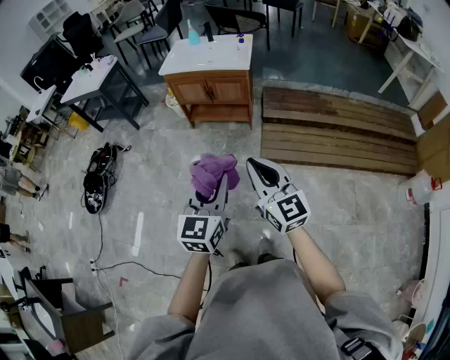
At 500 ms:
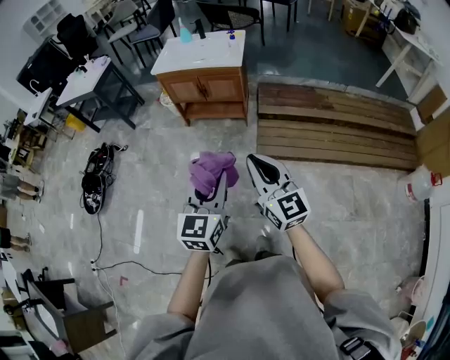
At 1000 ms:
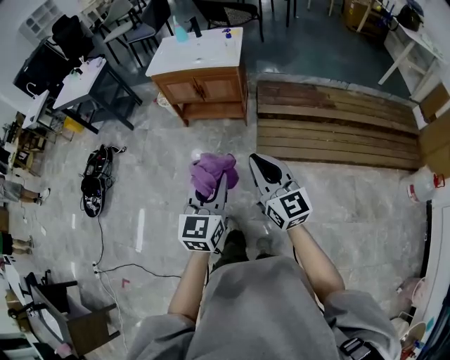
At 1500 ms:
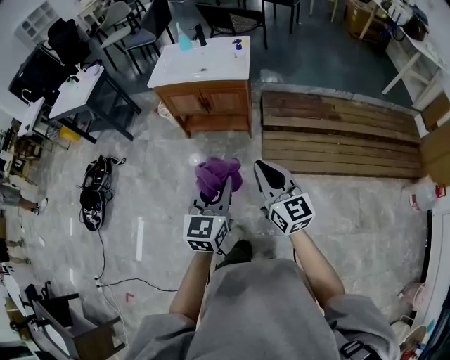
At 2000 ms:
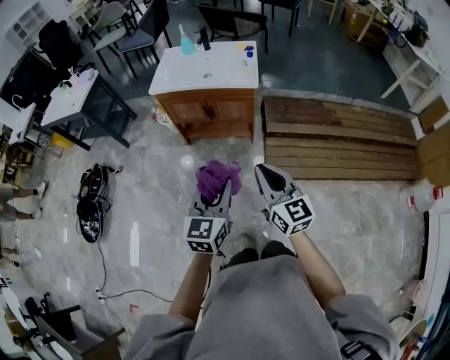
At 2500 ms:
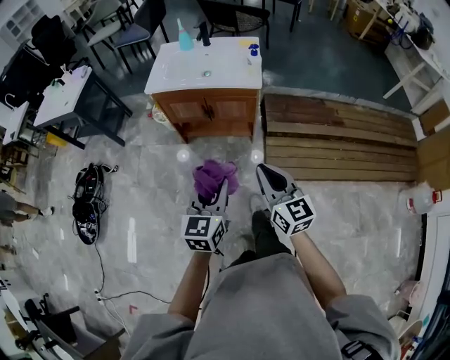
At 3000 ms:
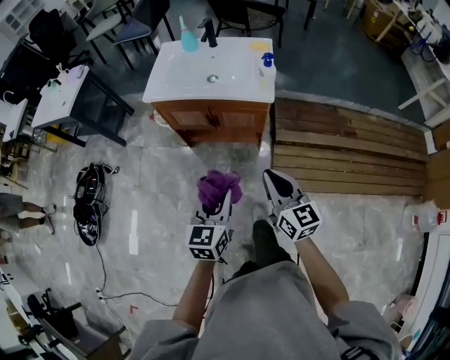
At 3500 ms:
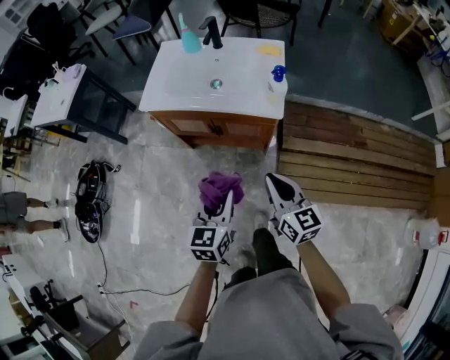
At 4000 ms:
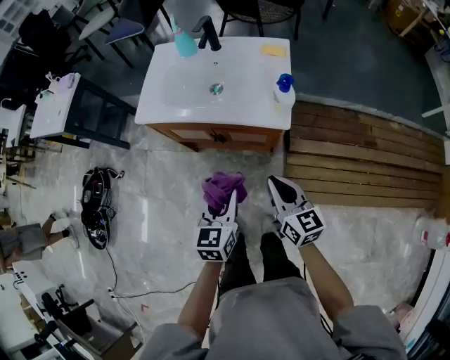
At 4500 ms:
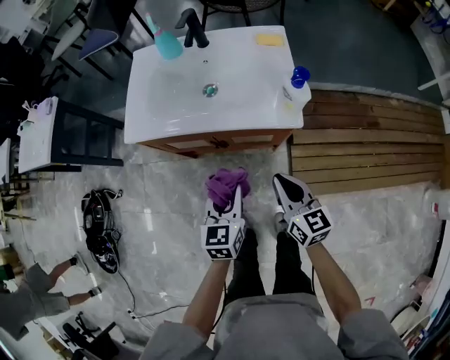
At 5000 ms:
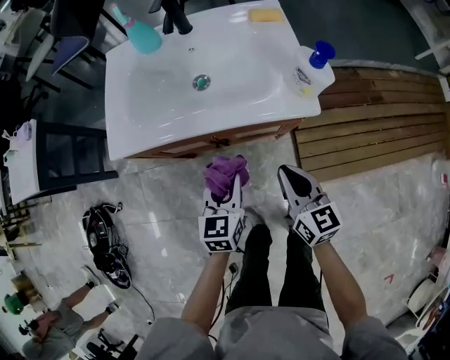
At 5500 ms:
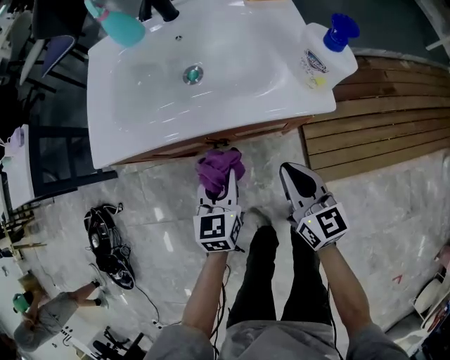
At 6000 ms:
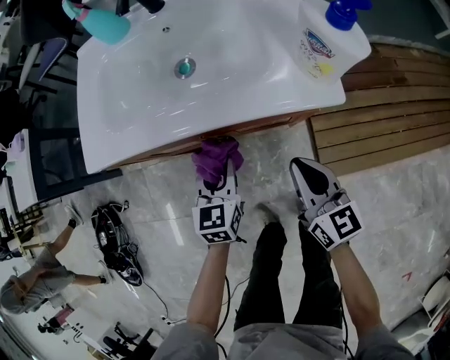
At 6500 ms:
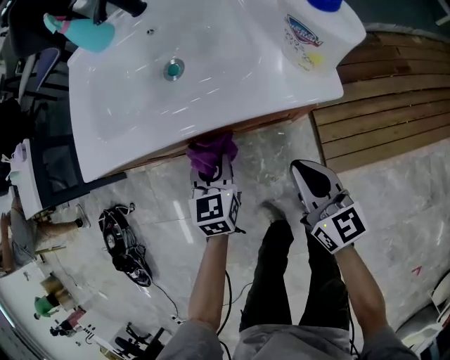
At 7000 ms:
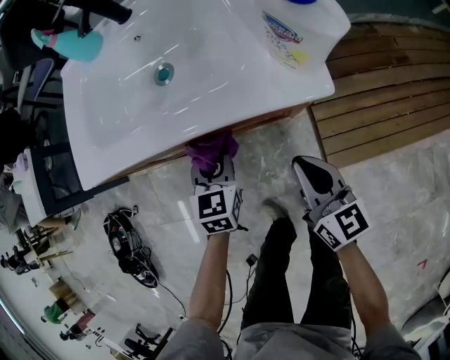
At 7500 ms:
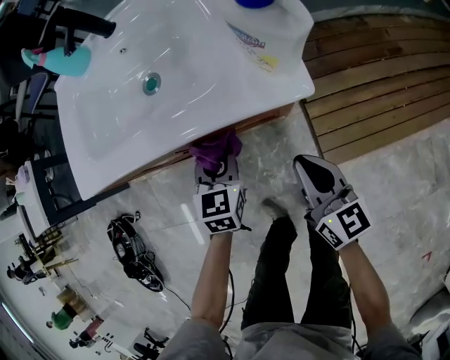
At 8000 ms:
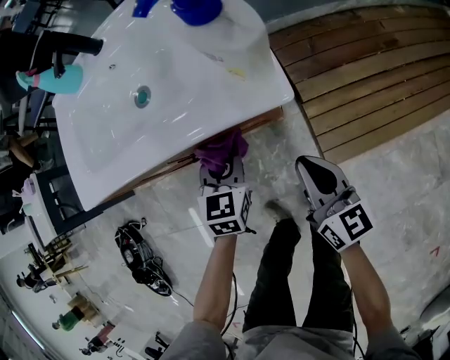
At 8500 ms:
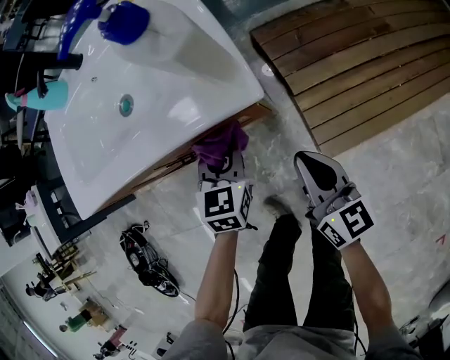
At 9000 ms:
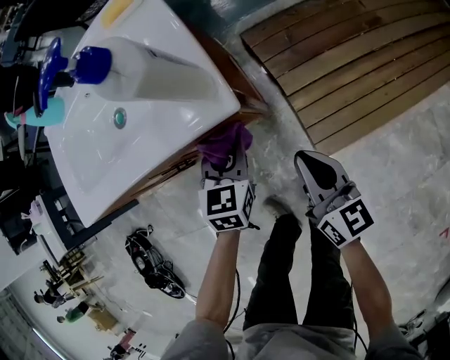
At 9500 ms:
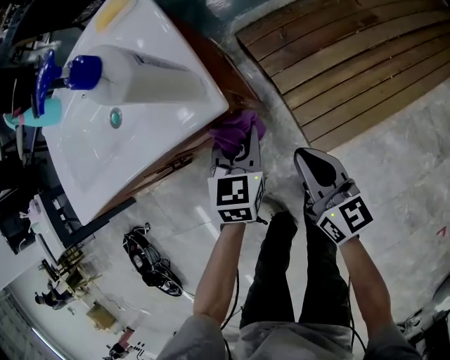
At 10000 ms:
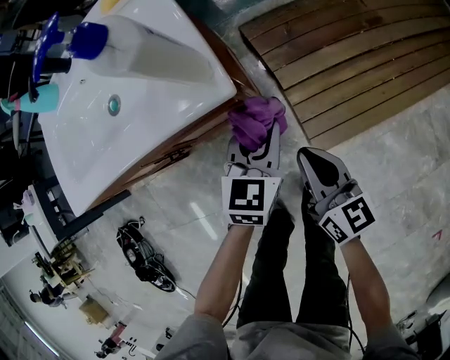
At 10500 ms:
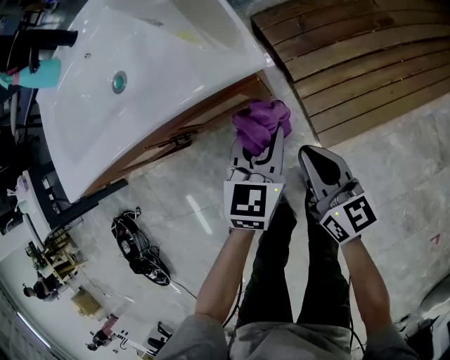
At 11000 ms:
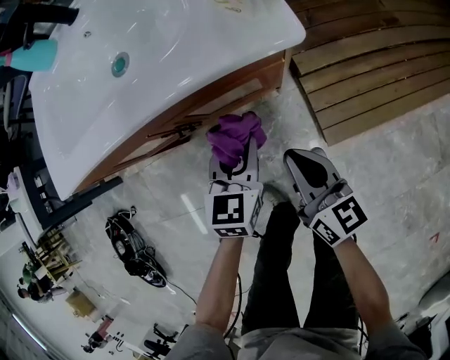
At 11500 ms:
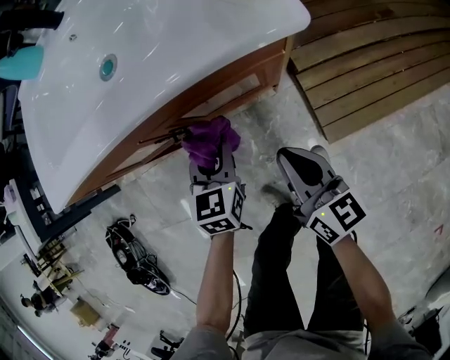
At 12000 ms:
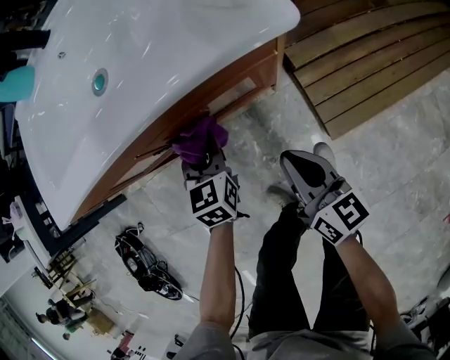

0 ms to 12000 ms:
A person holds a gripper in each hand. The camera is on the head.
0 ms to 2000 ms: Both grippers move forward, about 25 cm.
2000 ms to 4000 ms: Both grippers travel together forward and downward, about 35 cm.
4000 ms to 6000 ms: The grippers both shift downward and forward by some 25 cm.
6000 ms to 8000 ms: The two grippers go some 10 cm to the right.
8000 ms to 10000 ms: The right gripper is displaced to the right by roughly 5 cm, while the left gripper moves to the right, approximately 20 cm.
10000 ms to 12000 ms: The right gripper moves to the left and downward, some 15 cm; the left gripper travels to the left and downward by some 25 cm, and changes its angle by some 30 degrees.

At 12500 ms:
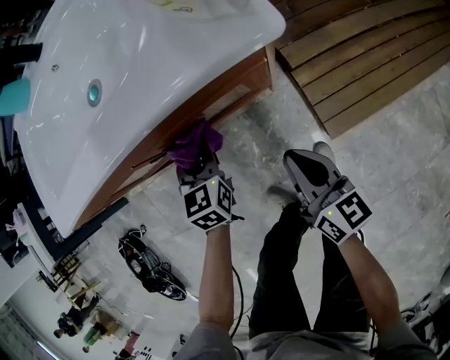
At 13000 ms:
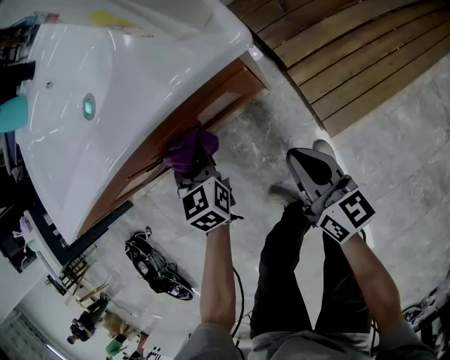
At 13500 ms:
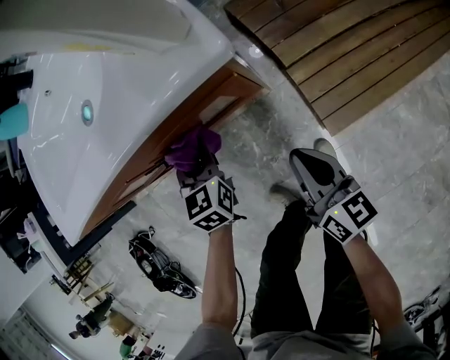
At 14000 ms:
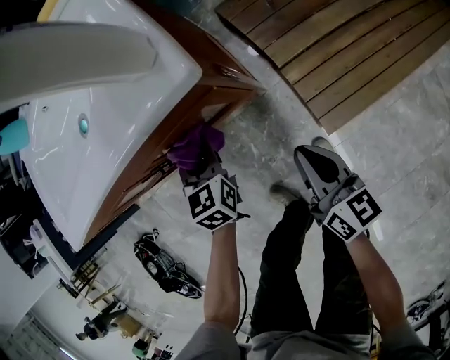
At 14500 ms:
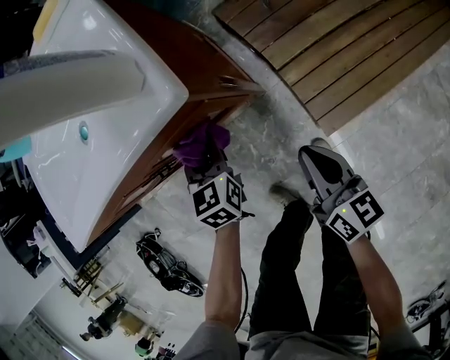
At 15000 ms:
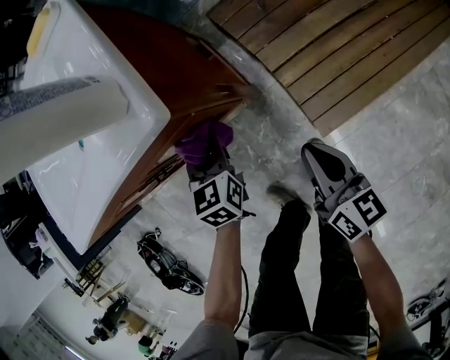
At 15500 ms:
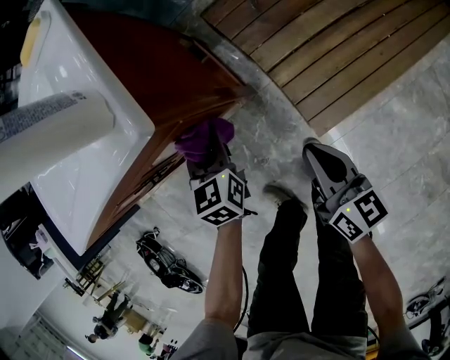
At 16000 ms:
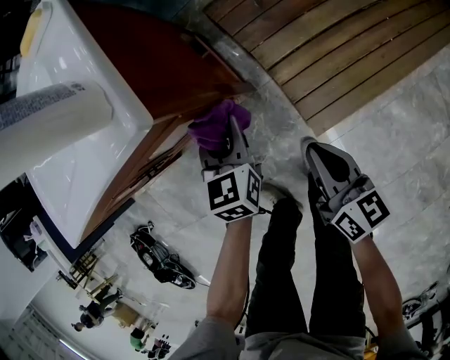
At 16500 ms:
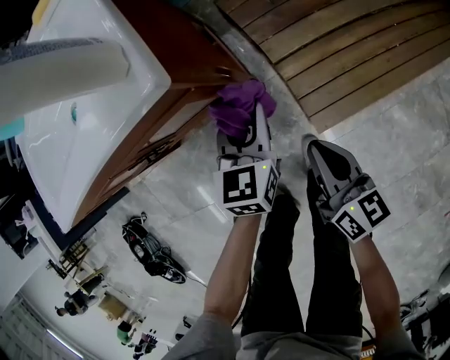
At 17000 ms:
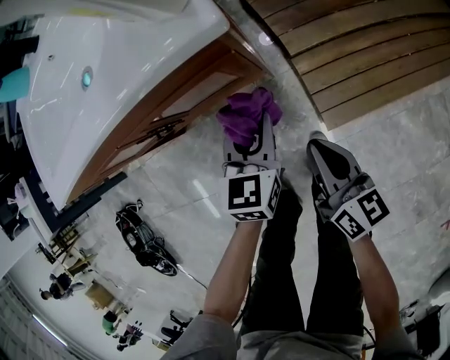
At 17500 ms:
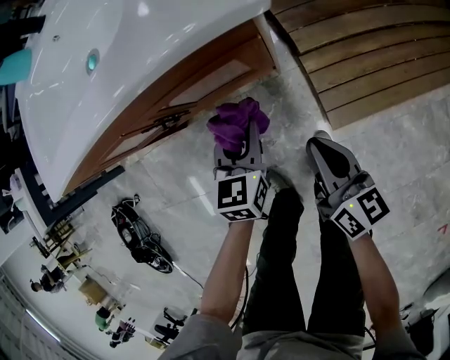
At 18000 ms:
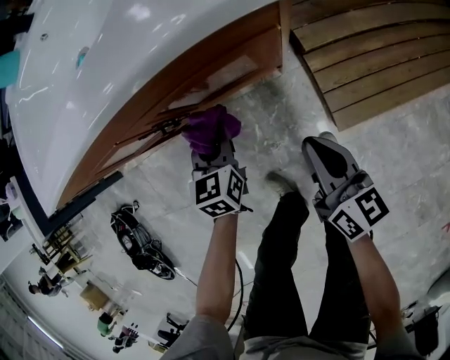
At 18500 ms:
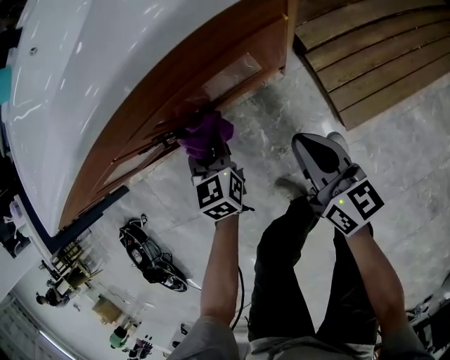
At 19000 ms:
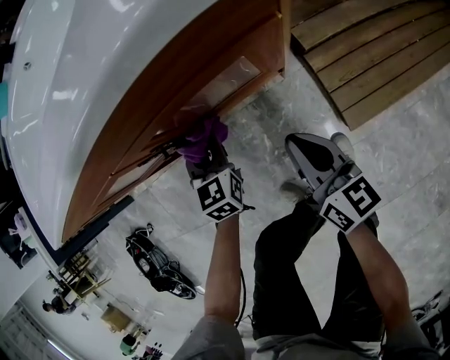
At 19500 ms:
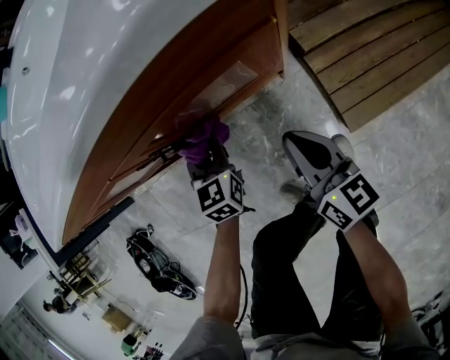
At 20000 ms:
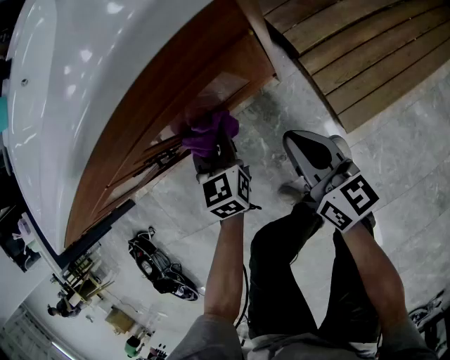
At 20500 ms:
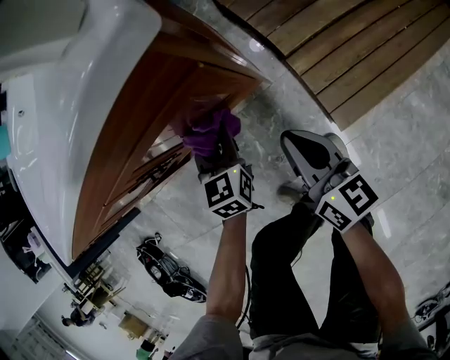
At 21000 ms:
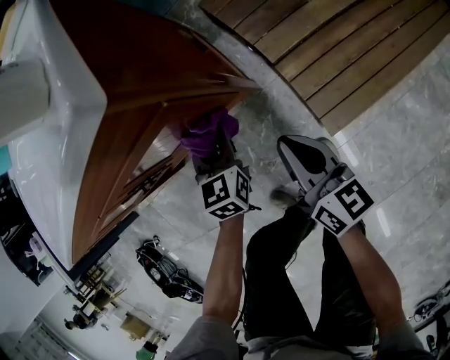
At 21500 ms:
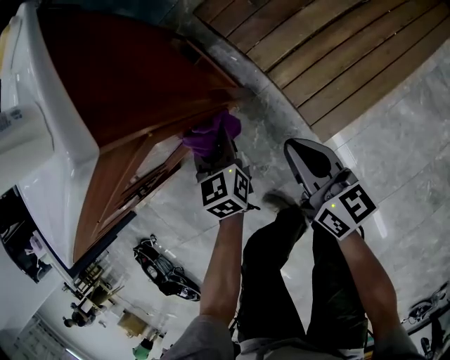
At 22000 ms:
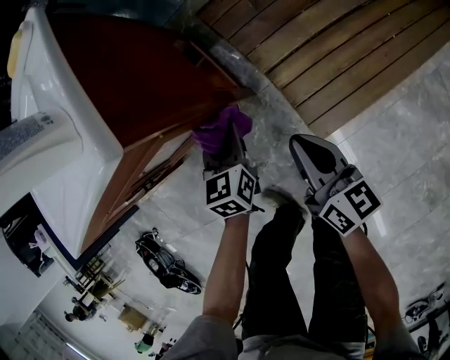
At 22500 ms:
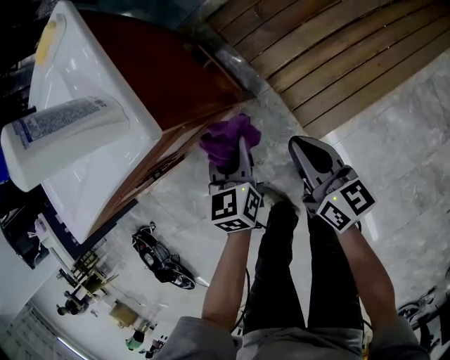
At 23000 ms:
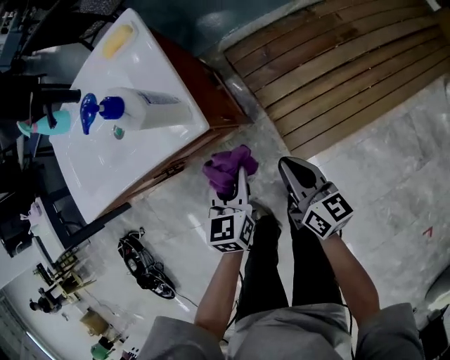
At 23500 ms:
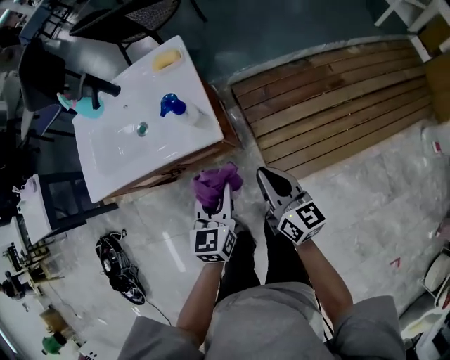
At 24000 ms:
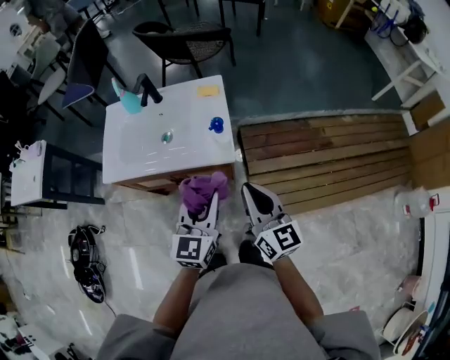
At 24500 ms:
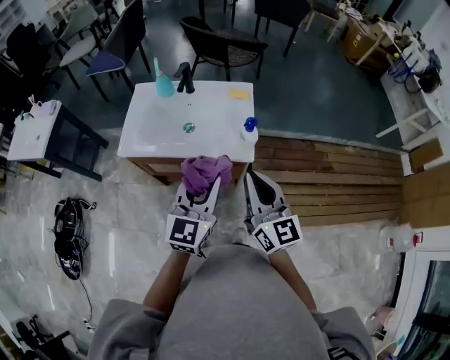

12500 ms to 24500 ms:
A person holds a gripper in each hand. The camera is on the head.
12500 ms to 14500 ms: The grippers both shift to the right by about 10 cm.
14500 ms to 16500 ms: The left gripper travels to the right by about 15 cm.
16500 ms to 18500 ms: The left gripper travels to the left and downward by approximately 30 cm; the right gripper is displaced to the left by about 15 cm.
18500 ms to 20500 ms: The left gripper moves to the right, some 10 cm; the right gripper travels to the right by about 5 cm.
20500 ms to 22500 ms: Both grippers move to the right and upward, roughly 15 cm.
22500 ms to 24500 ms: The two grippers go roughly 50 cm upward. The left gripper tilts its fingers approximately 30 degrees upward. The right gripper changes its angle by approximately 40 degrees.

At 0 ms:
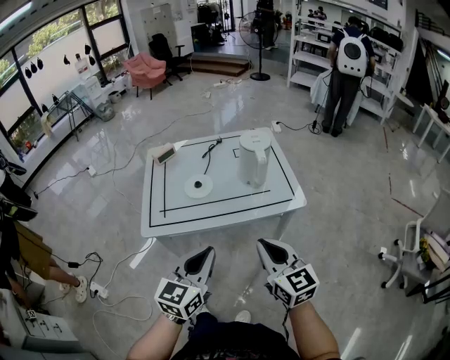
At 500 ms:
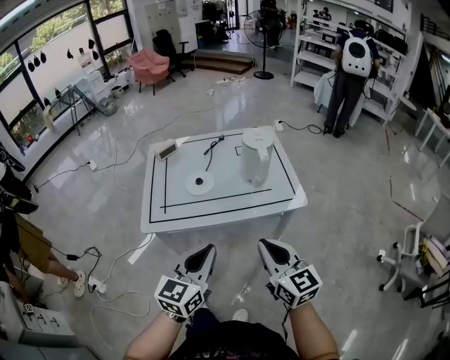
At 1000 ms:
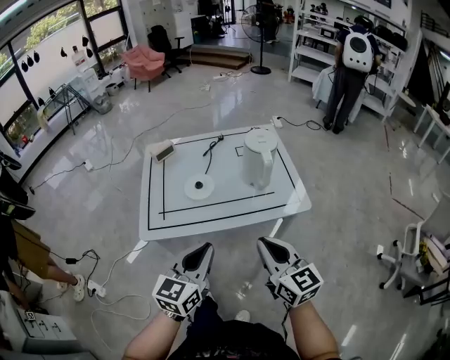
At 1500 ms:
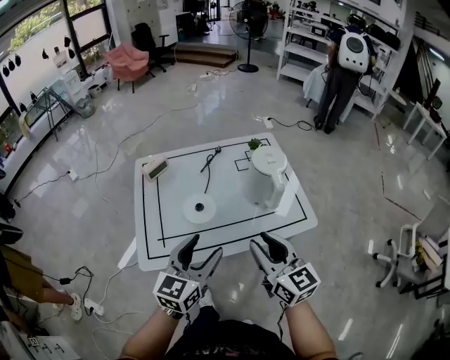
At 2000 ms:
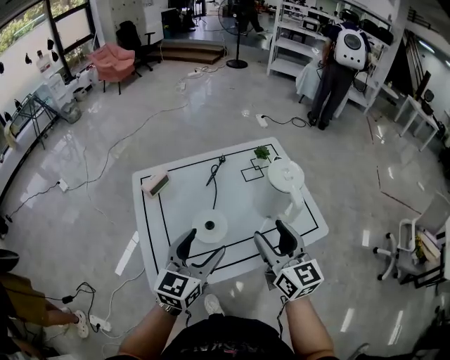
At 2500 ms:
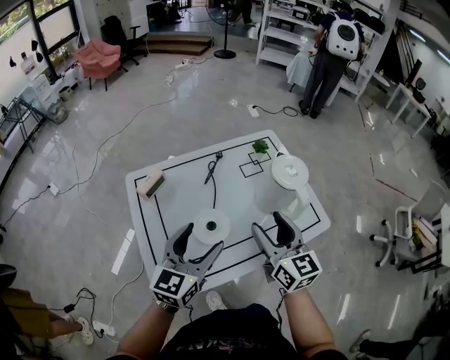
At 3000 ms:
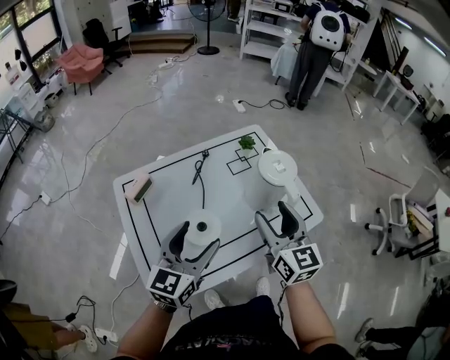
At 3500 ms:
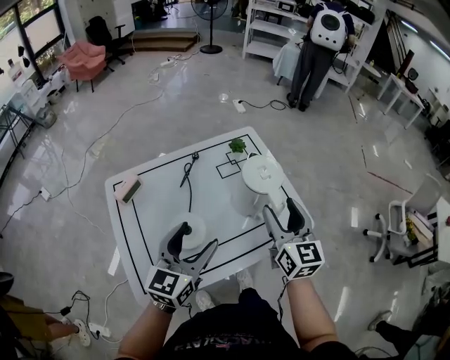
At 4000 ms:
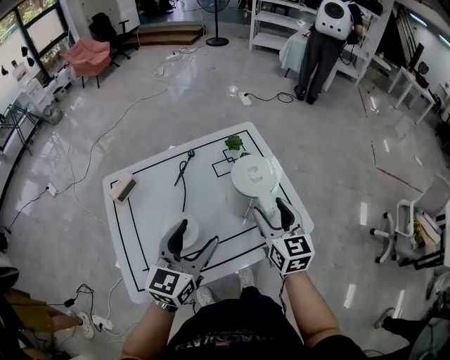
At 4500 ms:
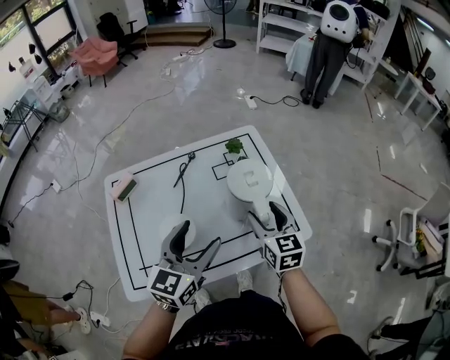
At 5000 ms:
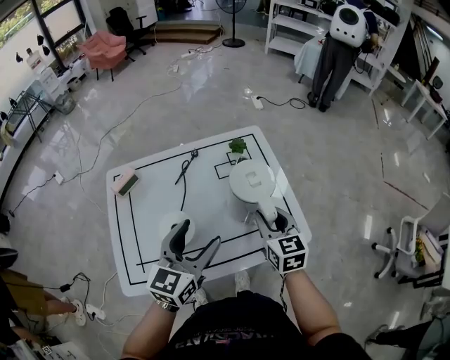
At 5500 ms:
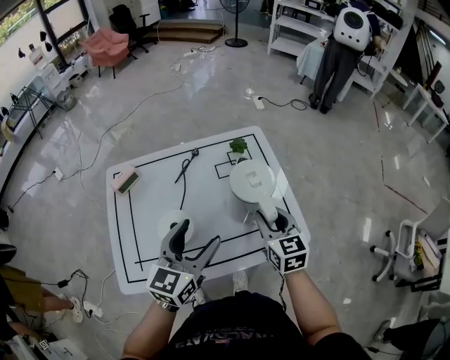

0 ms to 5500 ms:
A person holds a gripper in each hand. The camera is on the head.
0 ms to 2000 ms: The left gripper shifts roughly 30 cm forward and to the left, and opens. The right gripper travels forward by roughly 25 cm, and opens its fingers.
2000 ms to 3500 ms: The right gripper is displaced forward and to the right by about 15 cm. The left gripper is displaced forward by about 5 cm.
3500 ms to 5500 ms: The left gripper moves to the right, roughly 5 cm; the right gripper is displaced downward by about 10 cm, turns by some 20 degrees, and closes its fingers.
